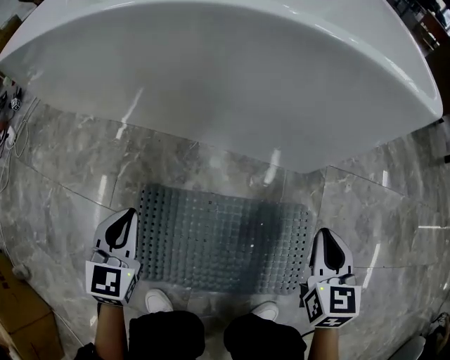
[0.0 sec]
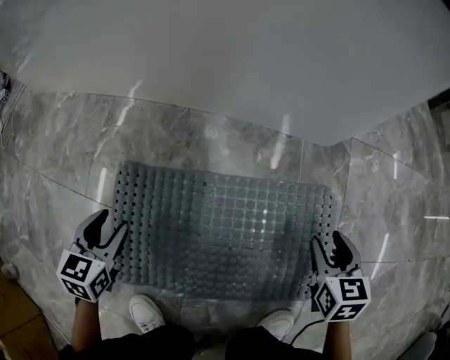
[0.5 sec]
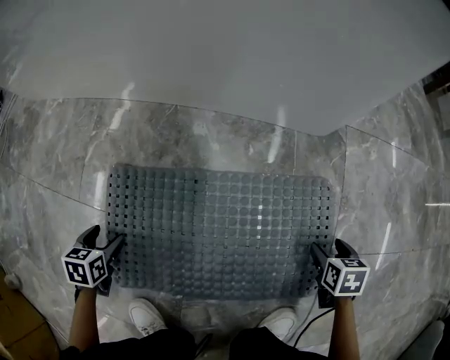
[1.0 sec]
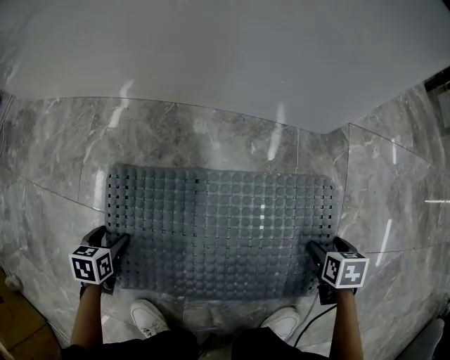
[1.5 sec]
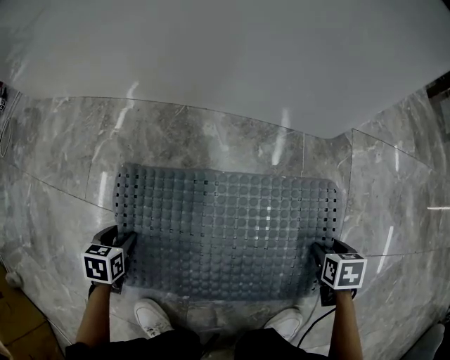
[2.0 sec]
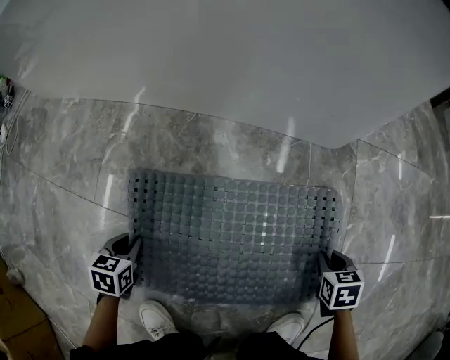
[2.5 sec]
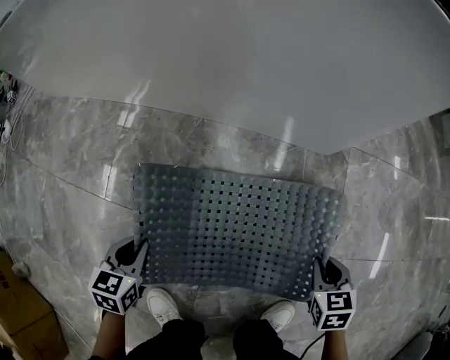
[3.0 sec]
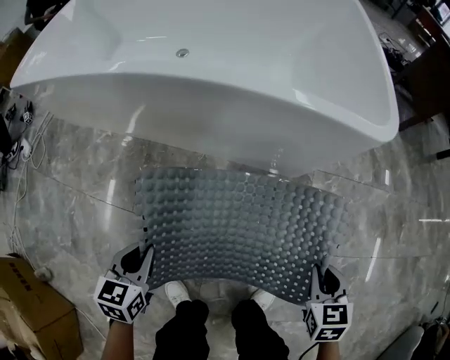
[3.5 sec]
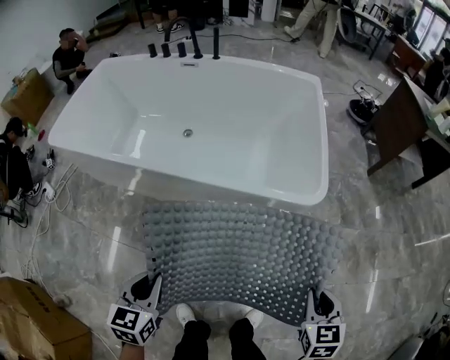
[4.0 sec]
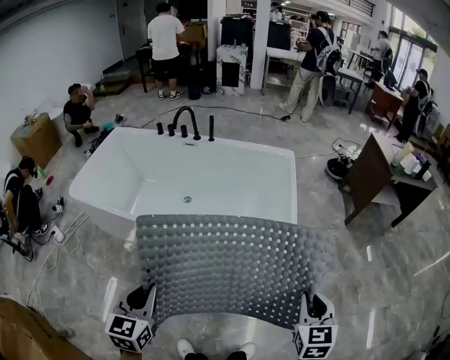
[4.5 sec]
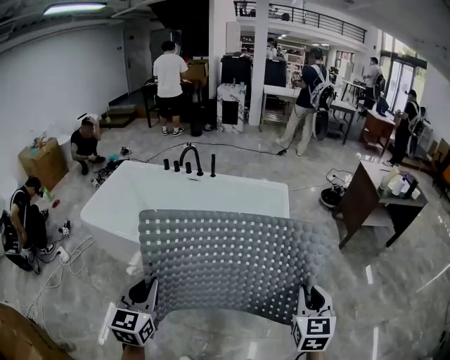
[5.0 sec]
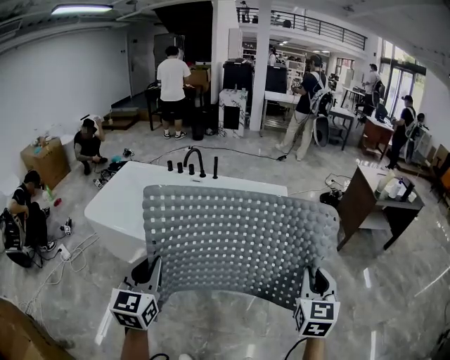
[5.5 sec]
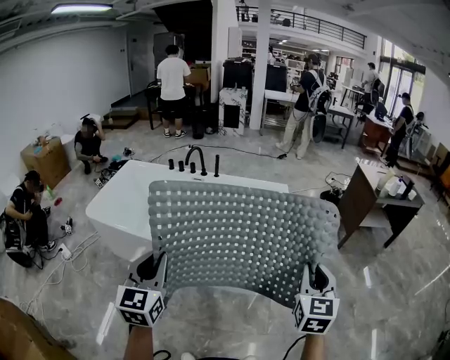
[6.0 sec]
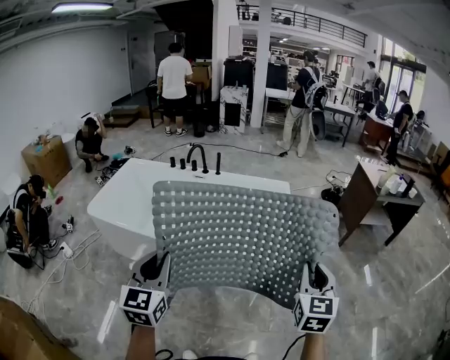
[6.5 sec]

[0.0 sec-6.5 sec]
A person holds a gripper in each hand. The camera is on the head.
0.0 sec to 2.0 sec: The grippers both shift downward by about 30 cm. The right gripper points its fingers roughly 40 degrees further downward, and opens, while the left gripper angles its fingers downward, by approximately 40 degrees, and opens.
2.0 sec to 4.5 sec: Both grippers travel together upward, about 90 cm. The left gripper angles its fingers upward, by roughly 40 degrees, and closes up. The right gripper angles its fingers upward, by some 50 degrees, and closes.
4.5 sec to 6.5 sec: Both grippers move upward, approximately 15 cm.

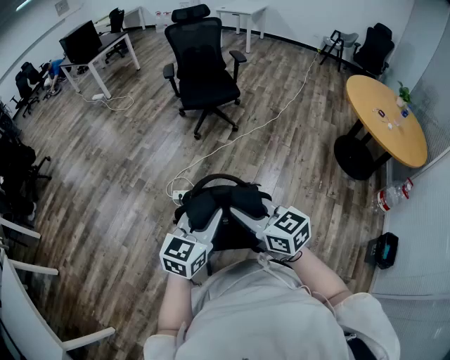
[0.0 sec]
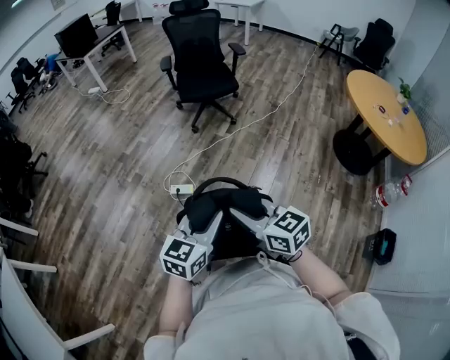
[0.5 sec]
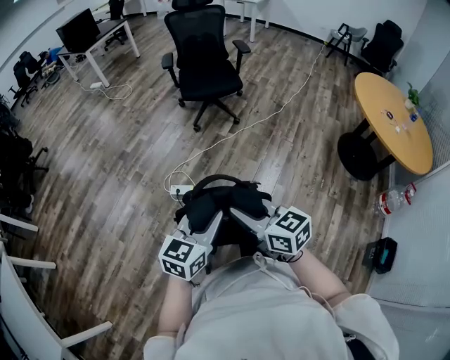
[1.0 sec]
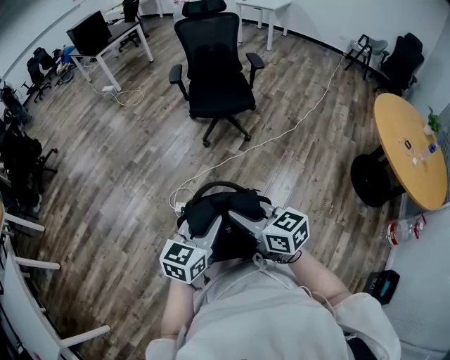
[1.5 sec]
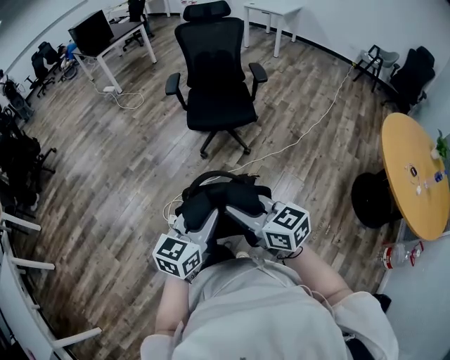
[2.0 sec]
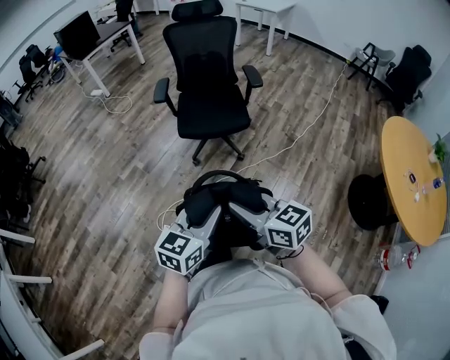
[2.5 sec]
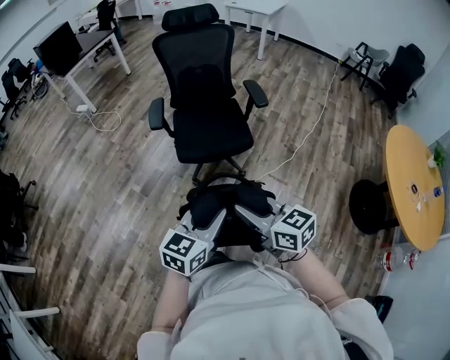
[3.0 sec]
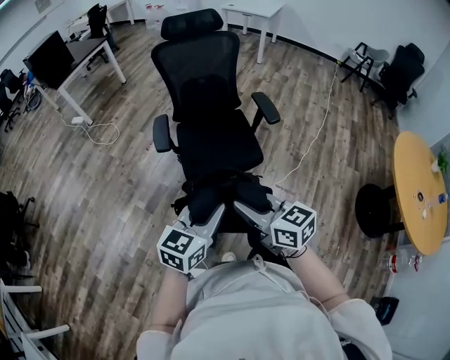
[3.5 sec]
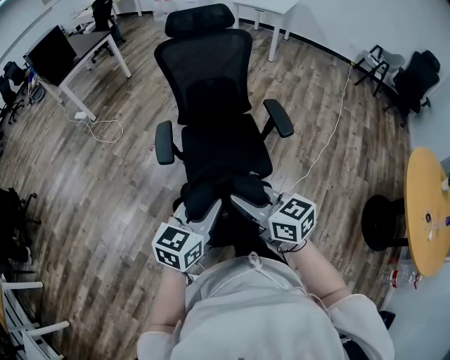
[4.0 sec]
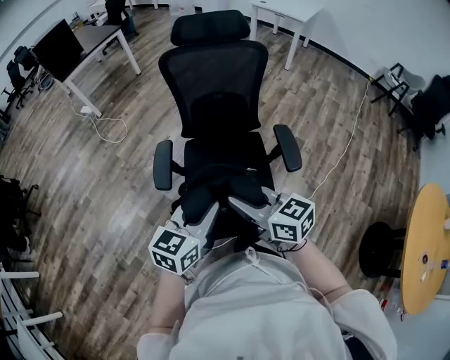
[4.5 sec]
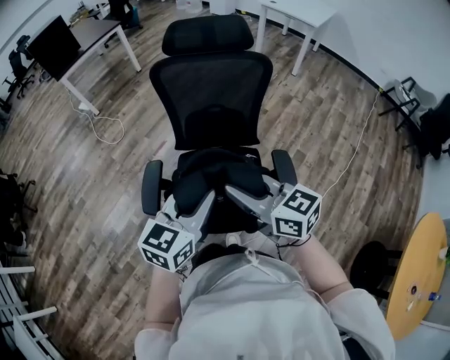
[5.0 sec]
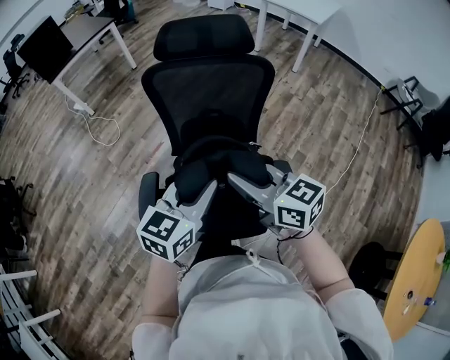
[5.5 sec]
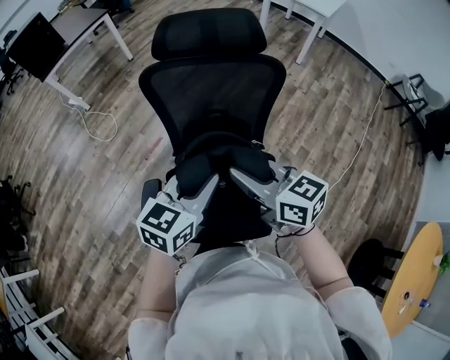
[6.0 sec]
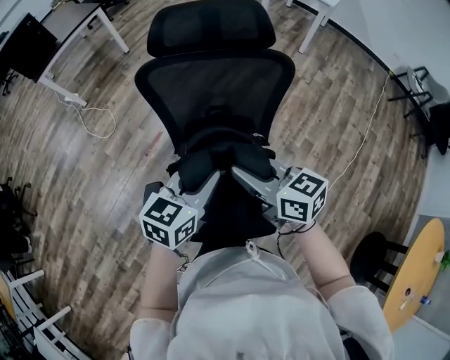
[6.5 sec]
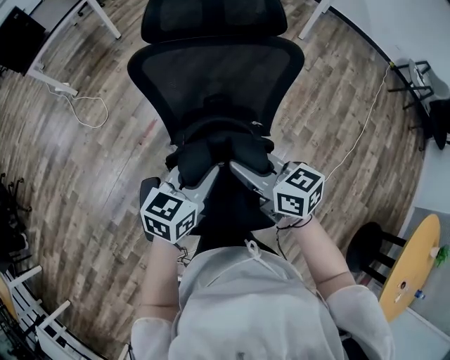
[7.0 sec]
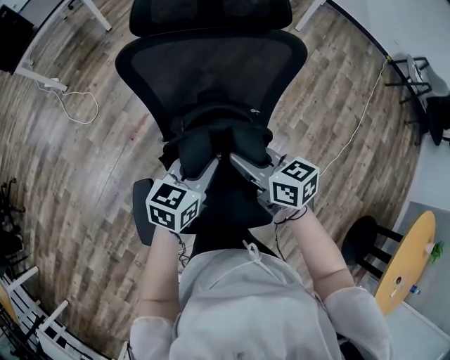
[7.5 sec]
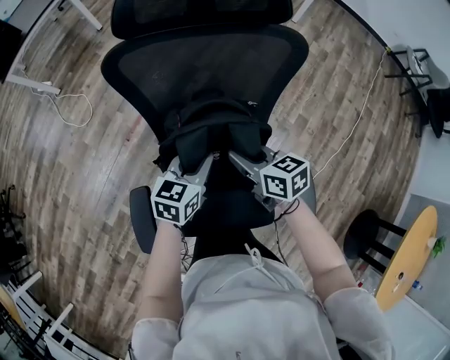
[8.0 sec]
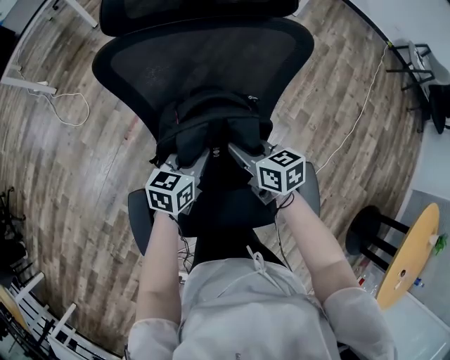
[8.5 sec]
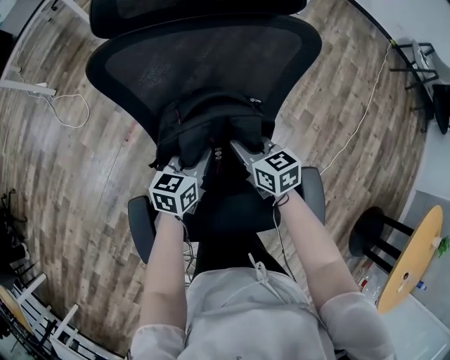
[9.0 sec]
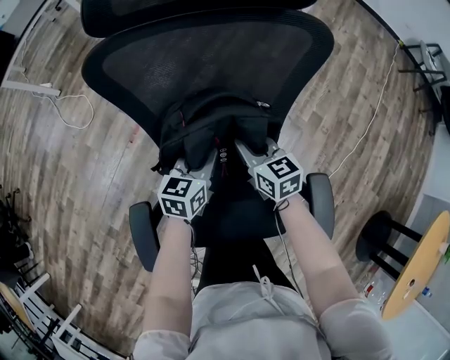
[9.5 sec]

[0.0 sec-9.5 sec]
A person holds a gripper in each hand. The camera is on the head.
0.0 sec to 2.0 sec: Both grippers travel together forward and to the right, about 40 cm.
2.0 sec to 4.0 sec: Both grippers are carried forward, roughly 60 cm.
4.0 sec to 5.5 sec: Both grippers are carried forward, about 50 cm.
5.5 sec to 7.5 sec: The two grippers go some 25 cm forward and downward.
7.5 sec to 9.5 sec: The two grippers go approximately 20 cm downward and forward.

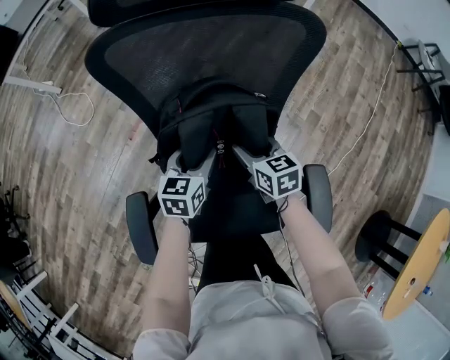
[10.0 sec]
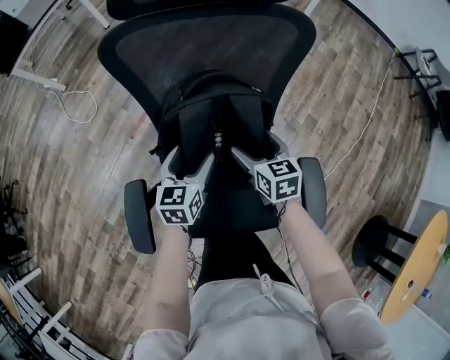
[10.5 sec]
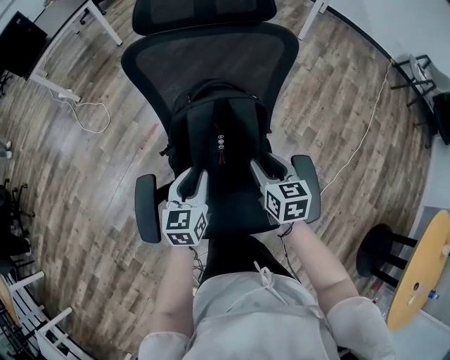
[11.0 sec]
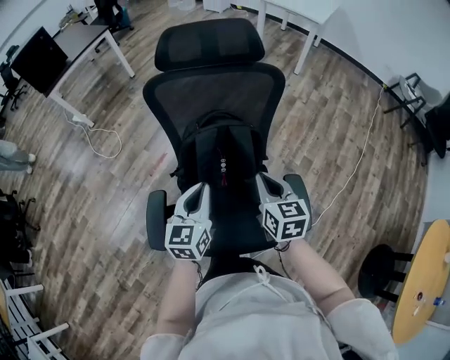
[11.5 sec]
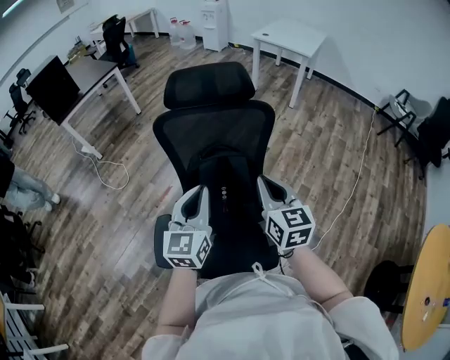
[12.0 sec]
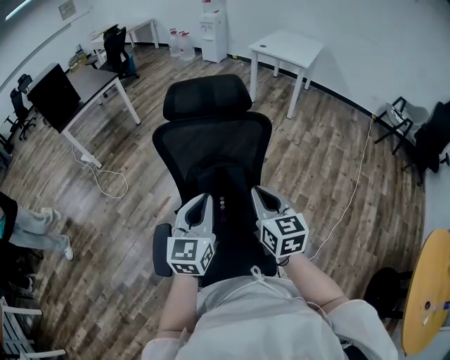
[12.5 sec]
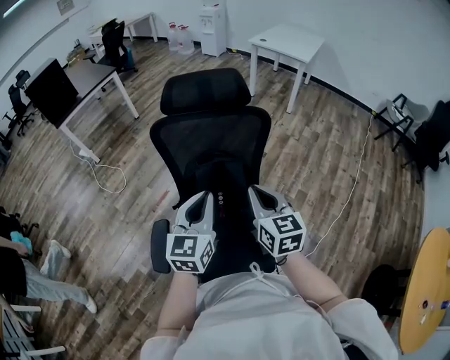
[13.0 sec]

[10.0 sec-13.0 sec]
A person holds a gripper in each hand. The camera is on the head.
10.0 sec to 11.5 sec: The two grippers go roughly 30 cm upward and backward. The left gripper changes its angle by some 20 degrees, and closes up; the right gripper closes its fingers.
11.5 sec to 13.0 sec: Both grippers travel together upward, approximately 15 cm.

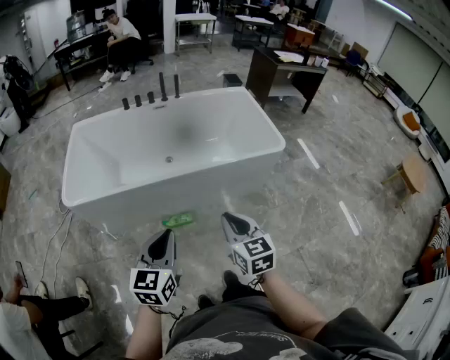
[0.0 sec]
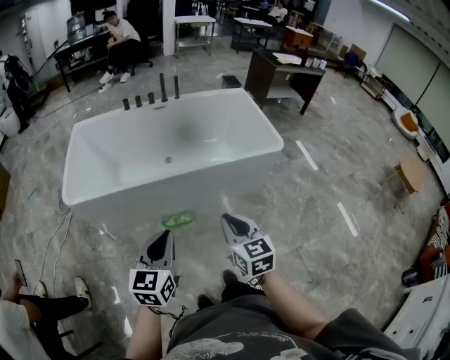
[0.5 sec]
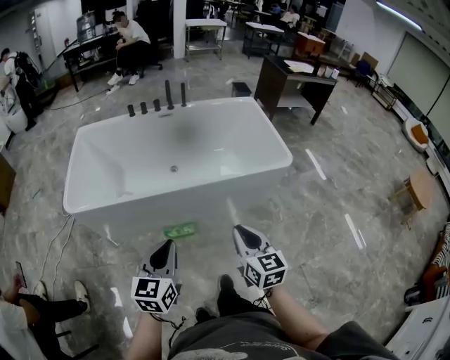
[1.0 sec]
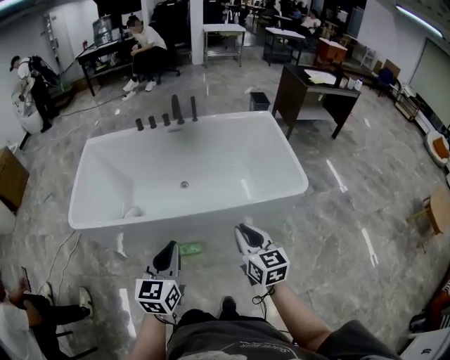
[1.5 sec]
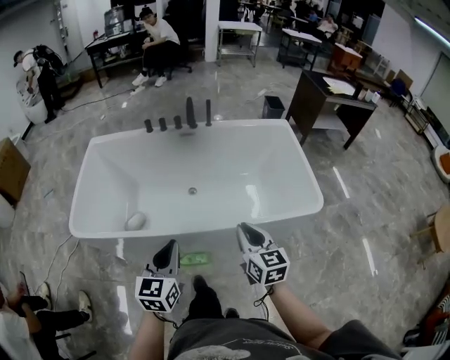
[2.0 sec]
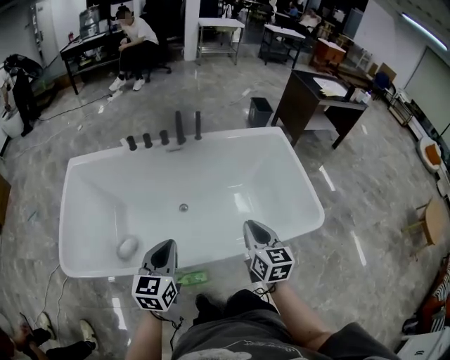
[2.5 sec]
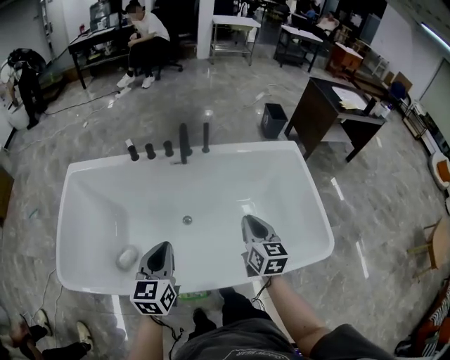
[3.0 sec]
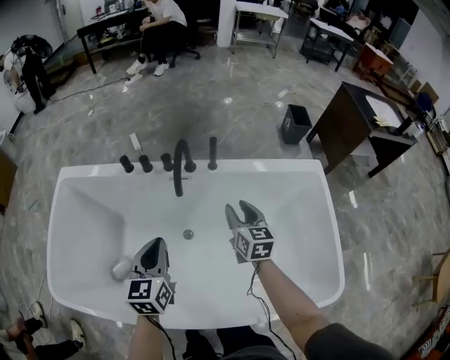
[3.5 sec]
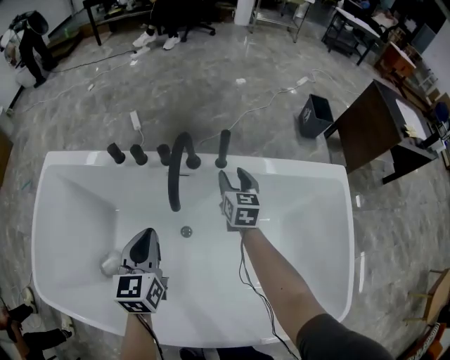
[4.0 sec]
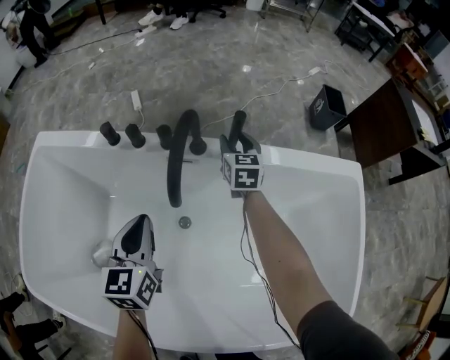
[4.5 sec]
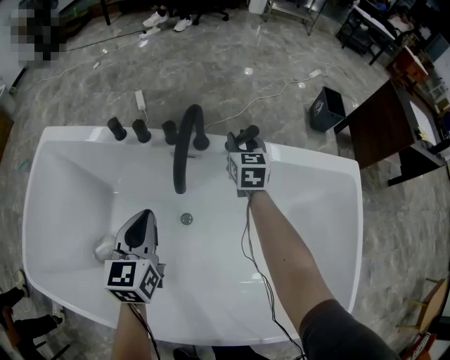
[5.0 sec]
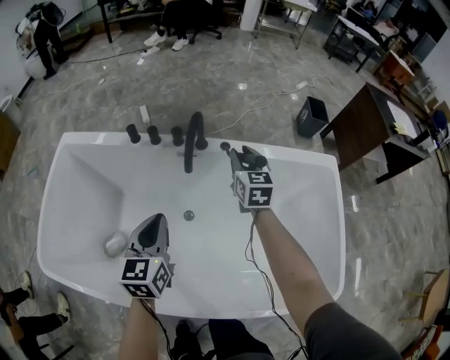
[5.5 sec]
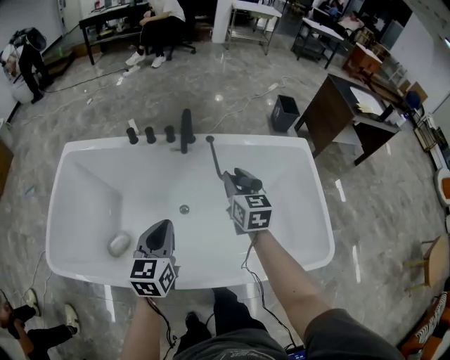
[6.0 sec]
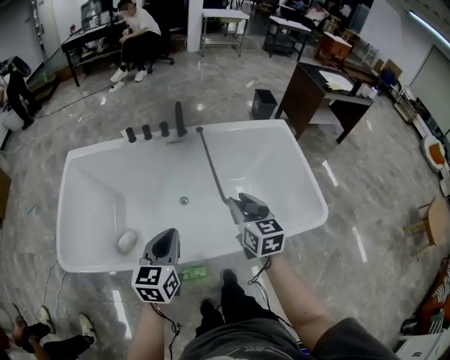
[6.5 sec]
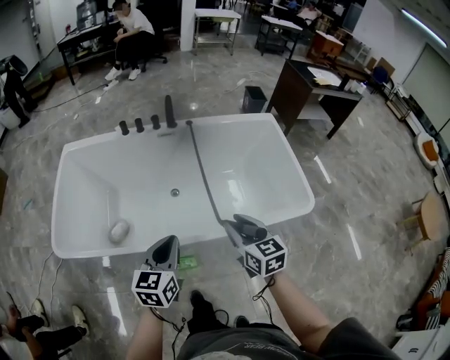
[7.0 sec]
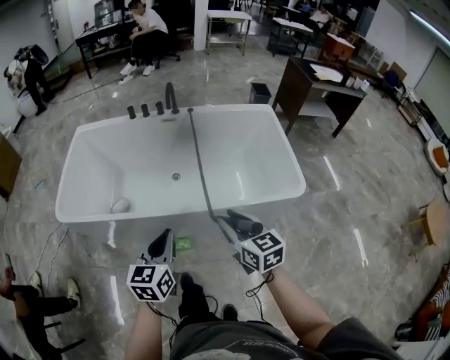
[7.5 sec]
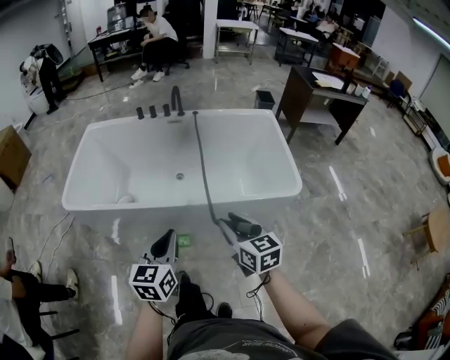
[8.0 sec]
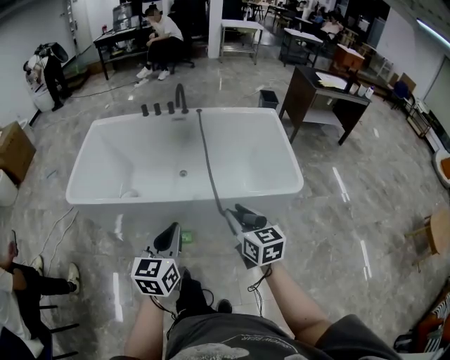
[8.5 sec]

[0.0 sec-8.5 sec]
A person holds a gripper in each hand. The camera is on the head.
0.0 sec to 2.0 sec: Both grippers move forward, approximately 30 cm.
2.0 sec to 4.0 sec: The pair of grippers is taken forward, approximately 70 cm. The right gripper opens up.
4.0 sec to 6.5 sec: The pair of grippers is taken backward, some 50 cm. The left gripper changes its angle by roughly 20 degrees. Meanwhile the right gripper moves upward, roughly 25 cm.
6.5 sec to 8.5 sec: The grippers both shift backward by about 35 cm.
